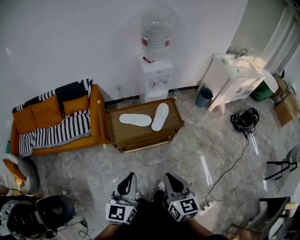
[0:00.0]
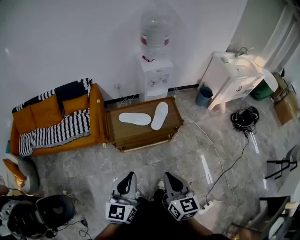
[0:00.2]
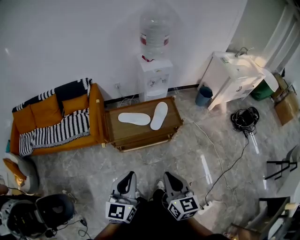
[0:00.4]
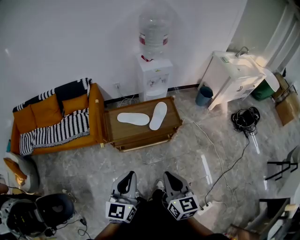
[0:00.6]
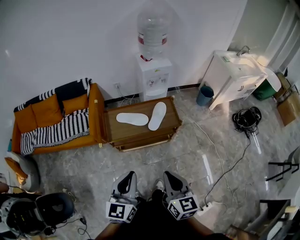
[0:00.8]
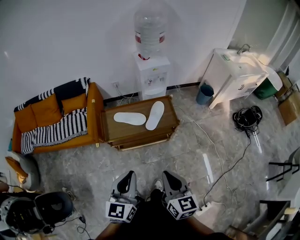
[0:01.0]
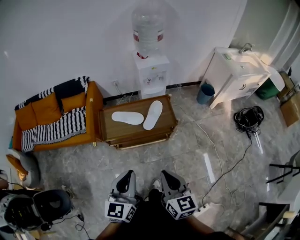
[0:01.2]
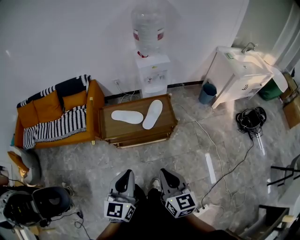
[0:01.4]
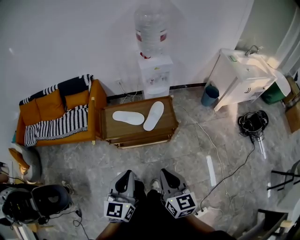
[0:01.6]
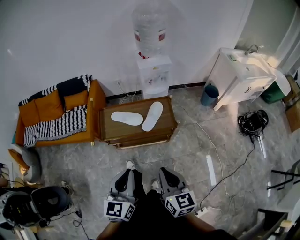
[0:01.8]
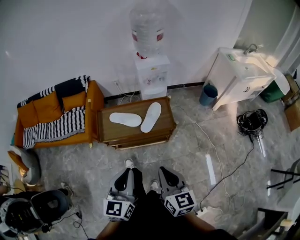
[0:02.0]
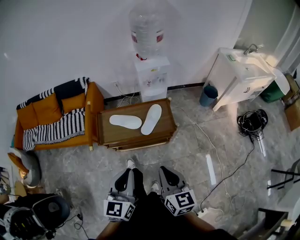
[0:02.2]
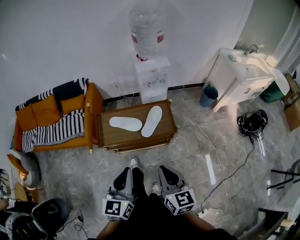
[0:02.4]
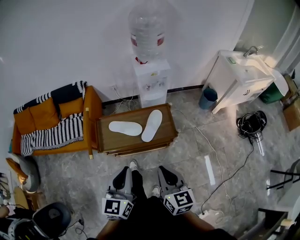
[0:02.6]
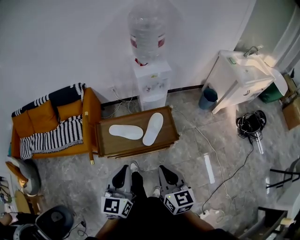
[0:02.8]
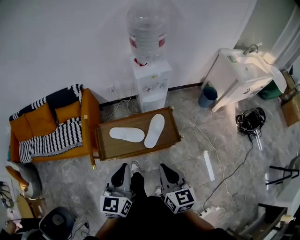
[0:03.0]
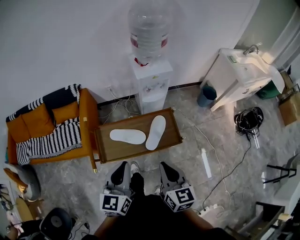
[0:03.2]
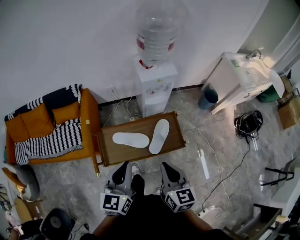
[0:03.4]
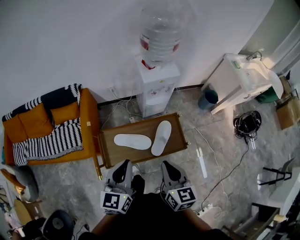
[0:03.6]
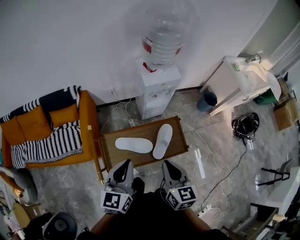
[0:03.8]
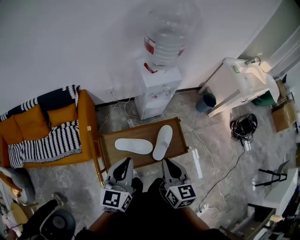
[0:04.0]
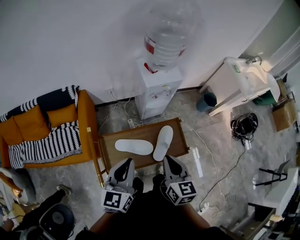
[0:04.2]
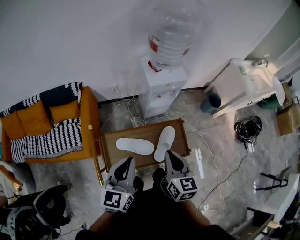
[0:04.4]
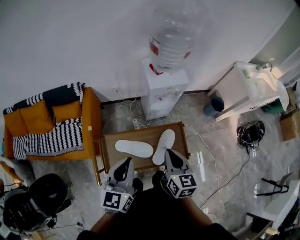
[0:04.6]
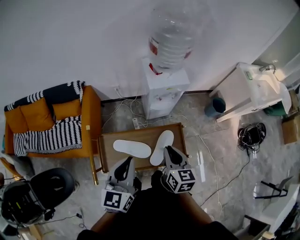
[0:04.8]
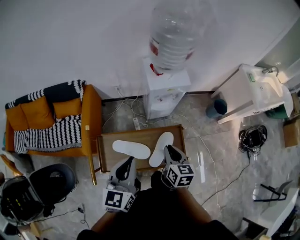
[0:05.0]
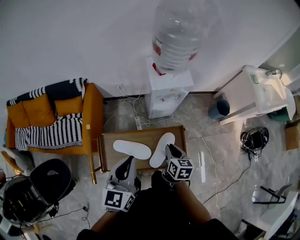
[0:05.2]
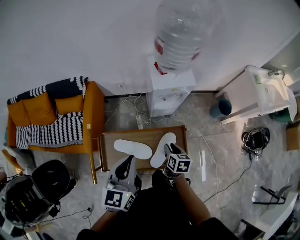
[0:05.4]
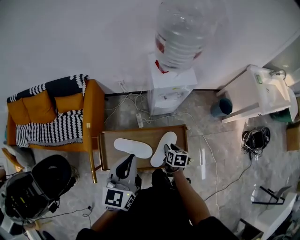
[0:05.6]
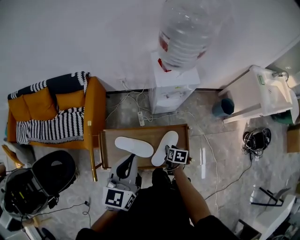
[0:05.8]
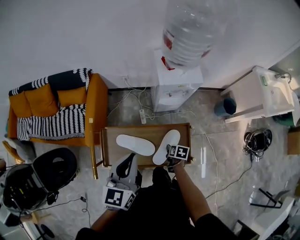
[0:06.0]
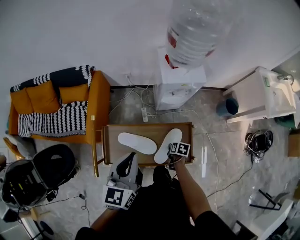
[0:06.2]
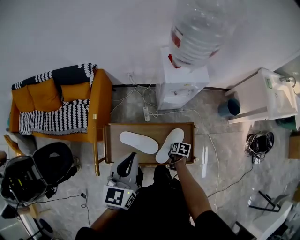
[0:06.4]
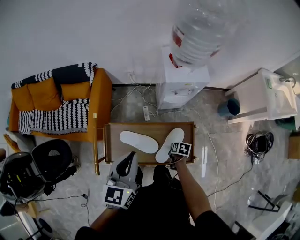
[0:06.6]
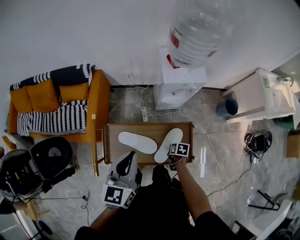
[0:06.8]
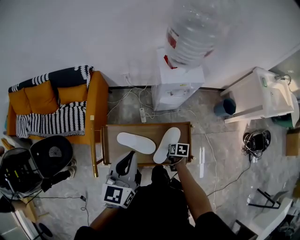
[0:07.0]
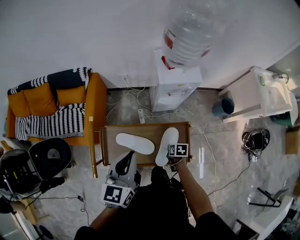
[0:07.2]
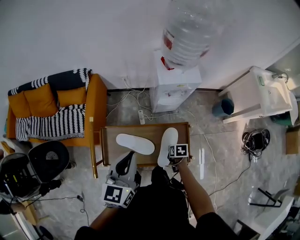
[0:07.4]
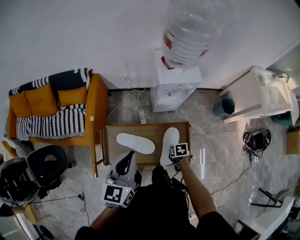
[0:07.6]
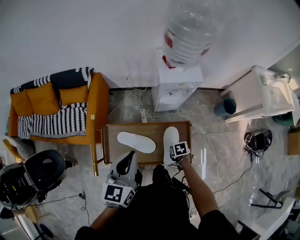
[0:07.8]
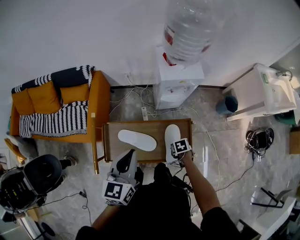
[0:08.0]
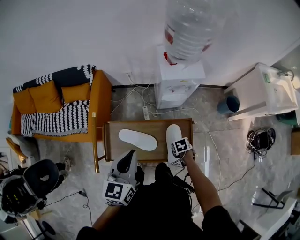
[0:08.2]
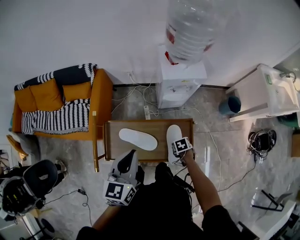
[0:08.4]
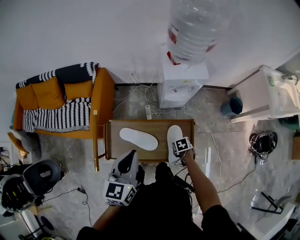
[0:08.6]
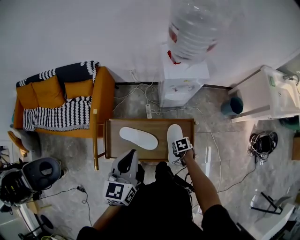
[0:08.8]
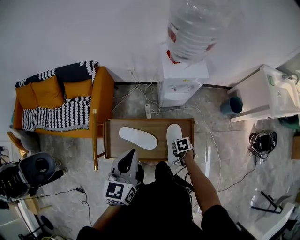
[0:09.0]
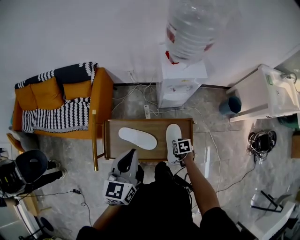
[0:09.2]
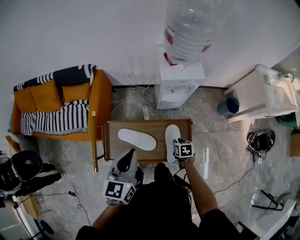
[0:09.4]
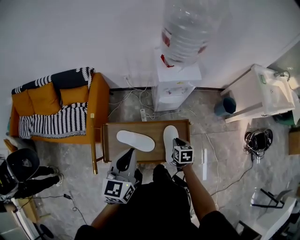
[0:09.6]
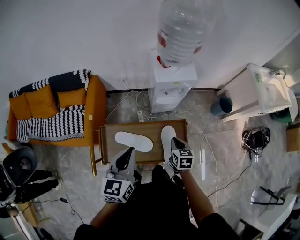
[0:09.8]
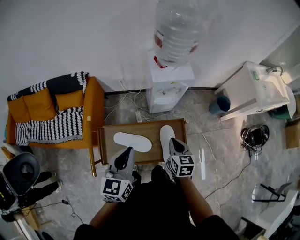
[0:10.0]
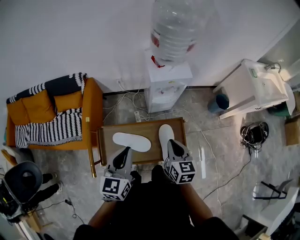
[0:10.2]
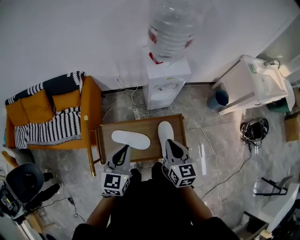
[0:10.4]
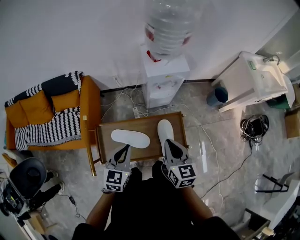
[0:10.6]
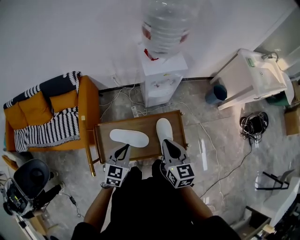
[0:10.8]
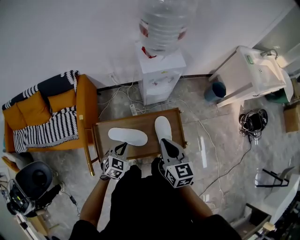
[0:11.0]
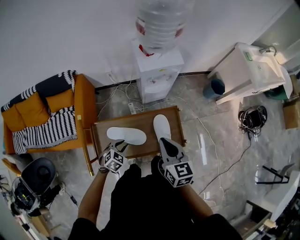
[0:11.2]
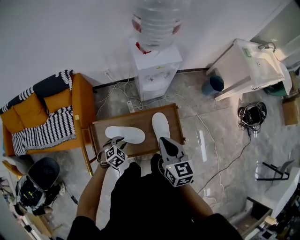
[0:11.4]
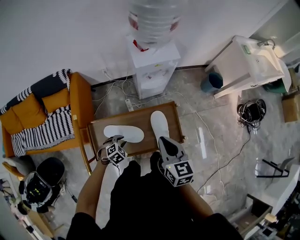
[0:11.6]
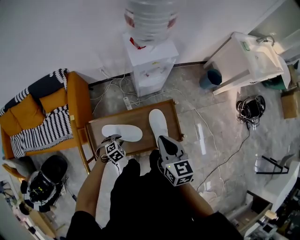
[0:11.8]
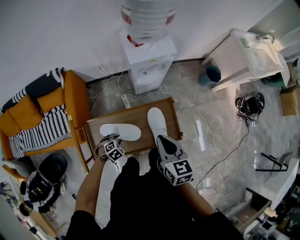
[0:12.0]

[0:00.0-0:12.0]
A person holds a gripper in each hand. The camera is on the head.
0.0 to 1.6 s: The left gripper goes roughly 15 cm to the right. Meanwhile the right gripper moves to the right and forward, approximately 15 cm.
1.6 to 3.0 s: The two grippers go some 20 cm forward.
3.0 to 4.4 s: The grippers both shift forward and to the left by about 20 cm.
4.4 to 6.0 s: The left gripper is displaced forward by approximately 5 cm. Meanwhile the right gripper shifts some 35 cm downward, angles its fingers downward, by some 40 degrees, and opens its fingers.
6.0 to 7.6 s: The right gripper turns by roughly 20 degrees, and closes its fingers.
7.6 to 9.0 s: The grippers stay close to where they were, moving slightly.
9.0 to 10.4 s: The right gripper goes approximately 30 cm upward, and tilts its fingers some 50 degrees upward.
10.4 to 12.0 s: The left gripper is displaced downward by about 35 cm, points its fingers approximately 50 degrees further downward, and opens up.

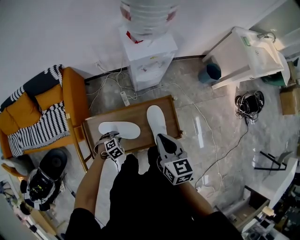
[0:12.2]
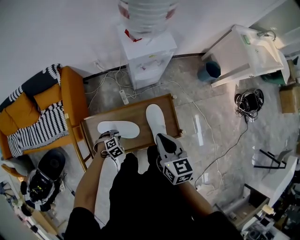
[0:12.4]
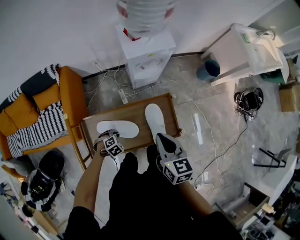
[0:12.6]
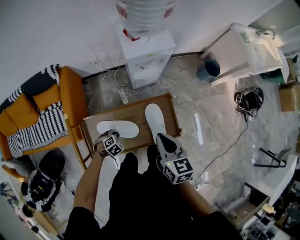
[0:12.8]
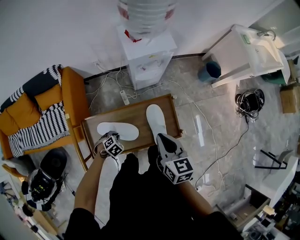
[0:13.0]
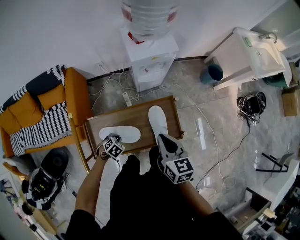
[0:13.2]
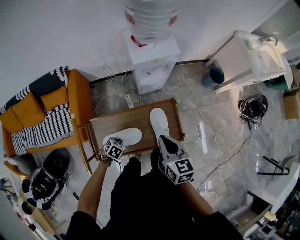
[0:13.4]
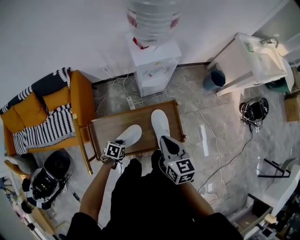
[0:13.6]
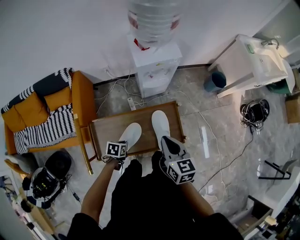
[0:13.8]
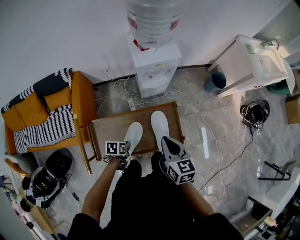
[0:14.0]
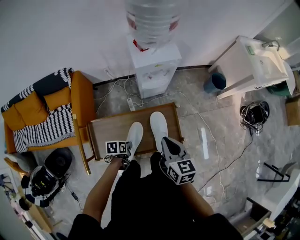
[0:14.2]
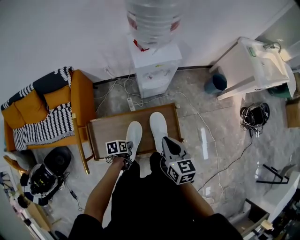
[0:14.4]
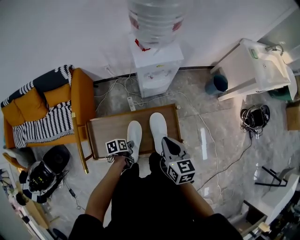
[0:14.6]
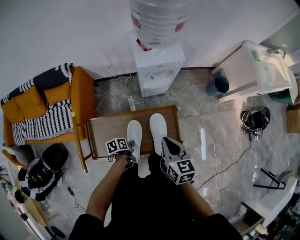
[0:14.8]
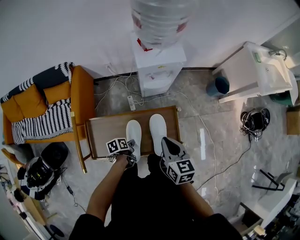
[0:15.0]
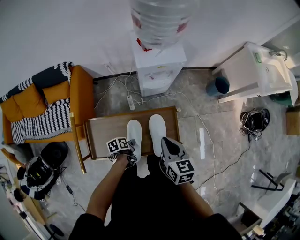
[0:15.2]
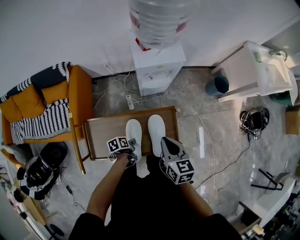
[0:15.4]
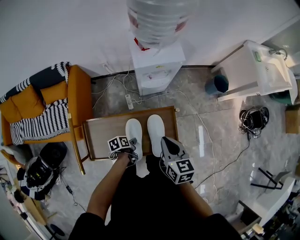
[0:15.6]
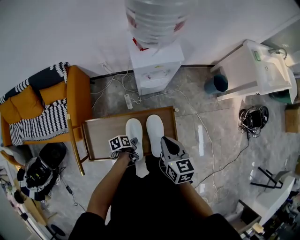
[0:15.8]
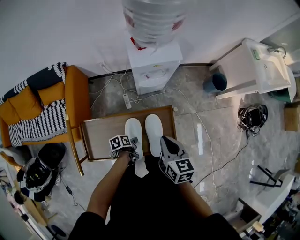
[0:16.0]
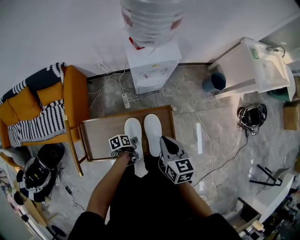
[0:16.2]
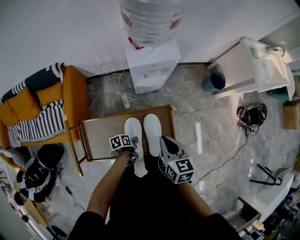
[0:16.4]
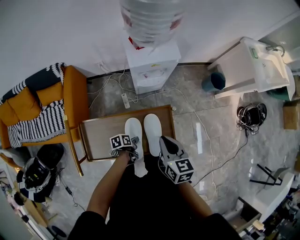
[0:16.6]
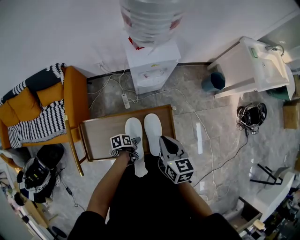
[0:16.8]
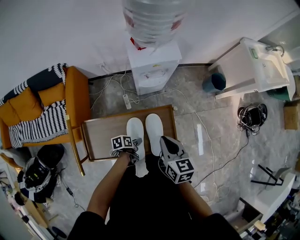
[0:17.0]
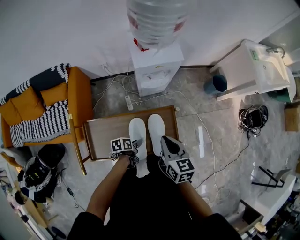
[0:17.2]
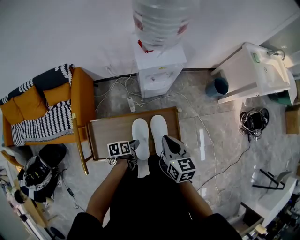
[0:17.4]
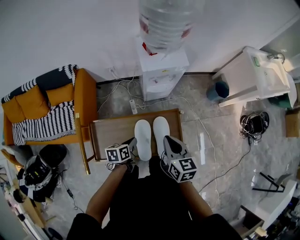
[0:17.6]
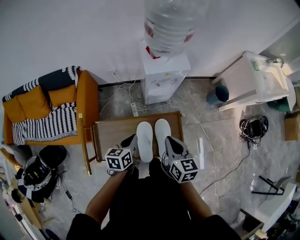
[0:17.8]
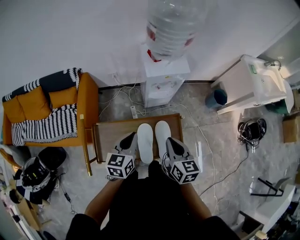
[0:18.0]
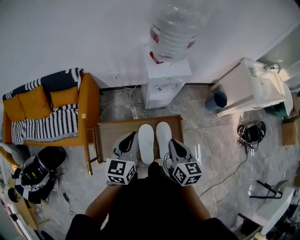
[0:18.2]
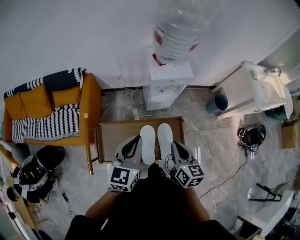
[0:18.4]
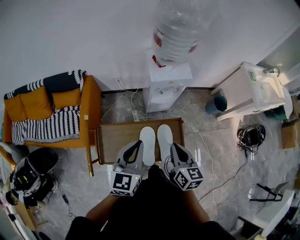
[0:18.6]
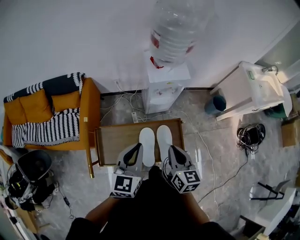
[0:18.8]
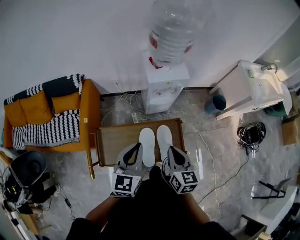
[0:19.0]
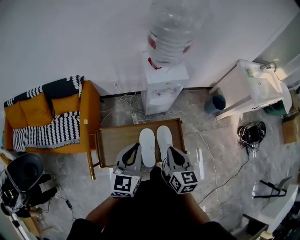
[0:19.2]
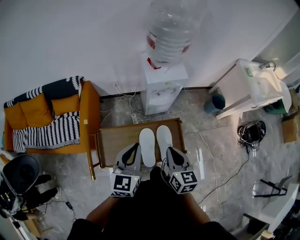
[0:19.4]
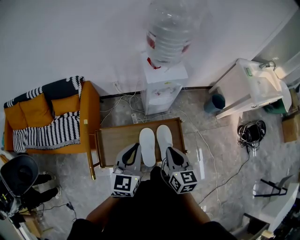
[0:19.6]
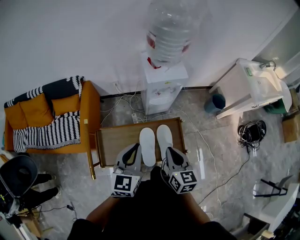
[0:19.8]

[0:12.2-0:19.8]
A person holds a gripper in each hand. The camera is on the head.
12.2 to 13.8 s: The left gripper is displaced upward by roughly 5 cm, twists approximately 60 degrees counterclockwise, seen from behind, and closes its fingers.
13.8 to 15.2 s: The left gripper shifts some 5 cm to the right, and rolls counterclockwise, seen from behind, by roughly 40 degrees.
15.2 to 16.8 s: The left gripper moves approximately 5 cm, and opens.
16.8 to 18.2 s: The right gripper travels upward by approximately 5 cm; the left gripper shifts some 35 cm upward, tips its fingers upward by some 30 degrees, and closes.
18.2 to 19.8 s: The left gripper ends up about 5 cm from where it was.

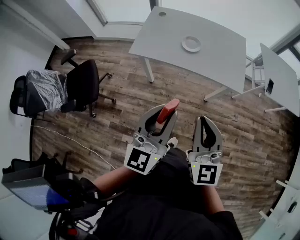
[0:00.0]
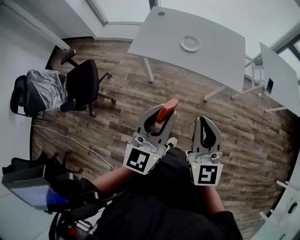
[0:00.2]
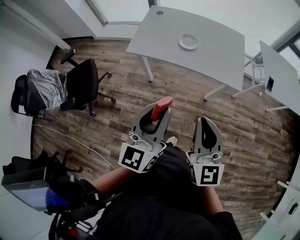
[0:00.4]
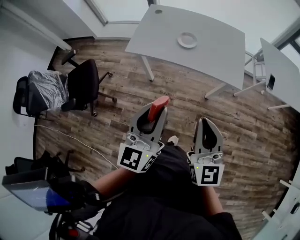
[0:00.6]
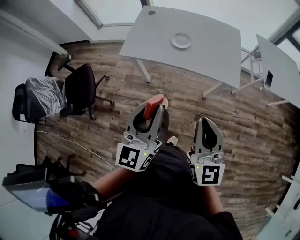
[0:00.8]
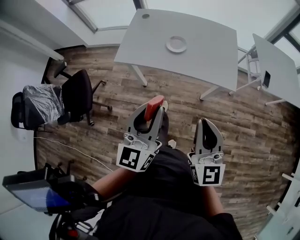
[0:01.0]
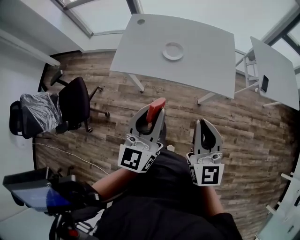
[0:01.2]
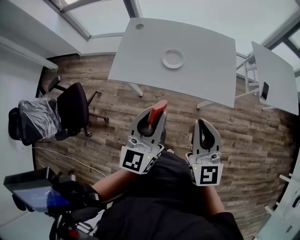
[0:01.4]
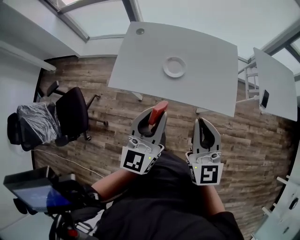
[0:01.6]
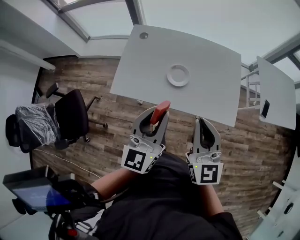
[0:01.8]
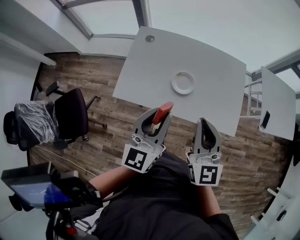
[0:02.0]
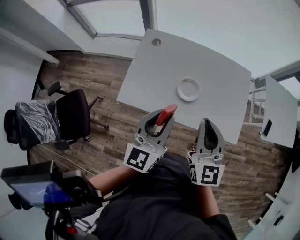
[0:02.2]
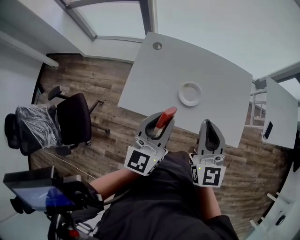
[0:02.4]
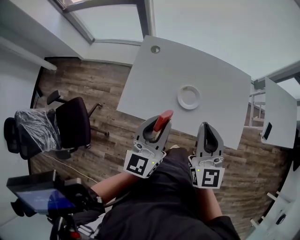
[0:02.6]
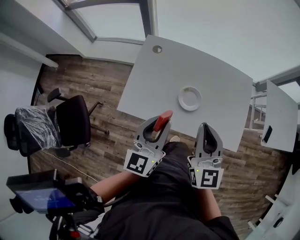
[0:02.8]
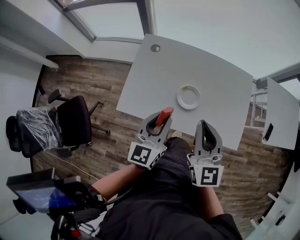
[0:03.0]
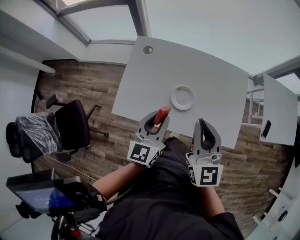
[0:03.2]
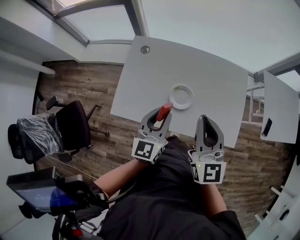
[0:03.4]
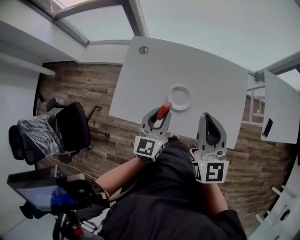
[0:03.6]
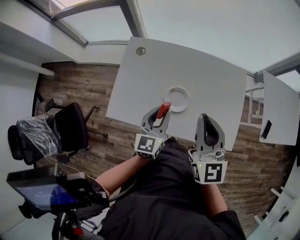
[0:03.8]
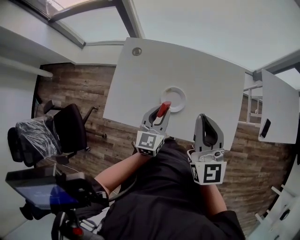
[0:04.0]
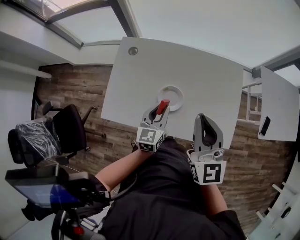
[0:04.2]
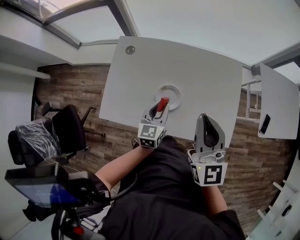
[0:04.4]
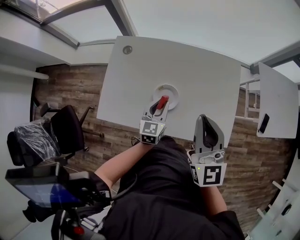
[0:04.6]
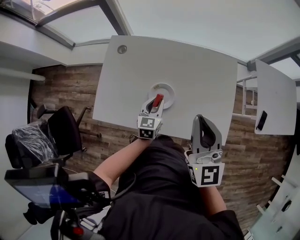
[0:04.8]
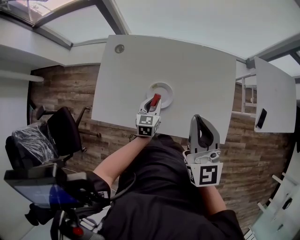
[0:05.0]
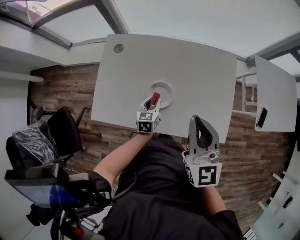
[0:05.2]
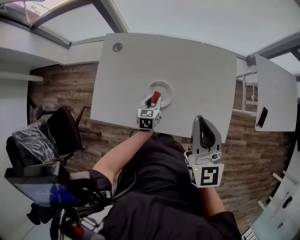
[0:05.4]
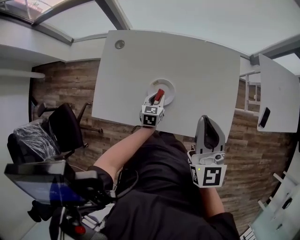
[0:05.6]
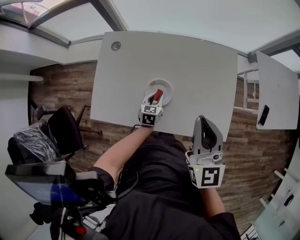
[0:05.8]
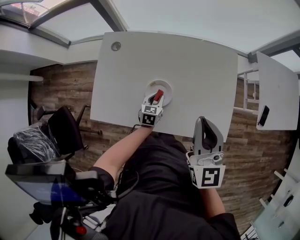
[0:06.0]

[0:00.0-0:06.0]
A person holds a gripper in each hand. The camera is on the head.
0.0 to 1.6 s: The two grippers go some 20 cm forward.
1.6 to 3.0 s: The two grippers go about 20 cm forward and to the left.
3.0 to 4.4 s: The left gripper is displaced downward, to the right and forward by about 20 cm, while the right gripper travels to the right and forward by about 15 cm.
4.4 to 6.0 s: The right gripper moves some 5 cm; the left gripper moves downward, some 15 cm, and swivels approximately 20 degrees.
